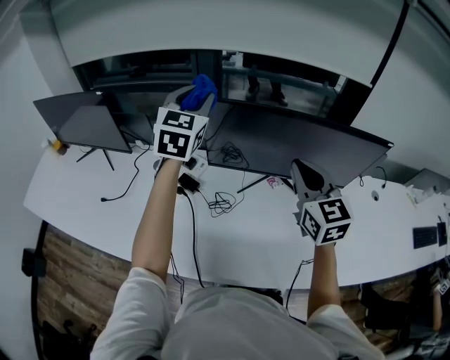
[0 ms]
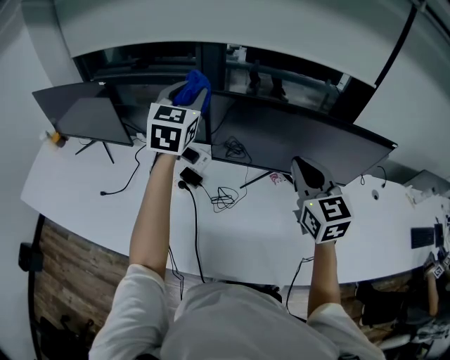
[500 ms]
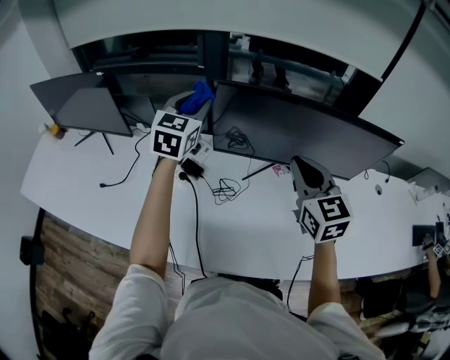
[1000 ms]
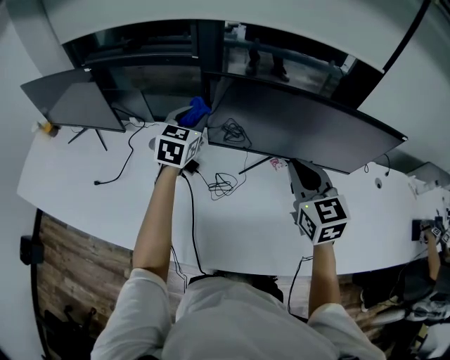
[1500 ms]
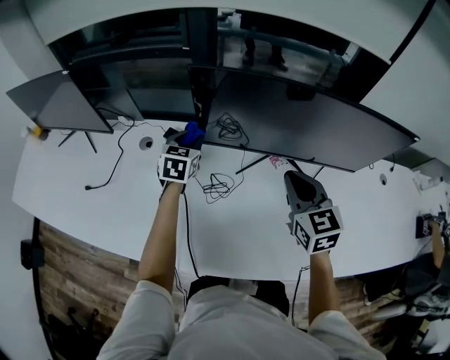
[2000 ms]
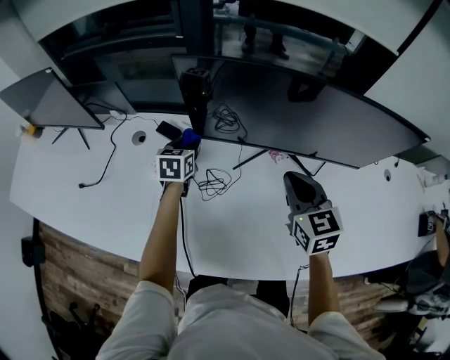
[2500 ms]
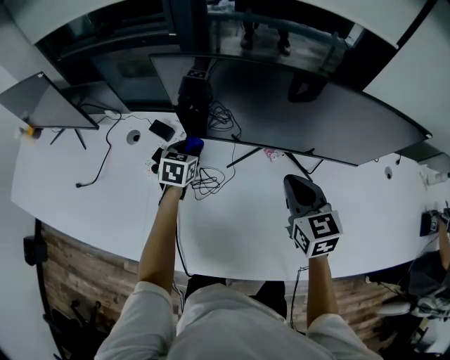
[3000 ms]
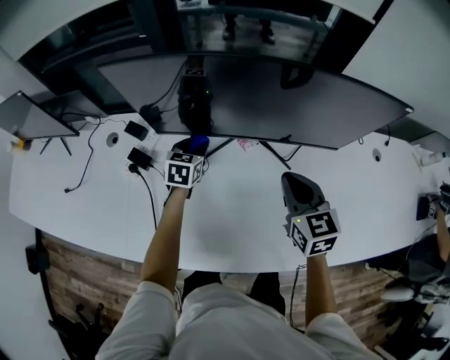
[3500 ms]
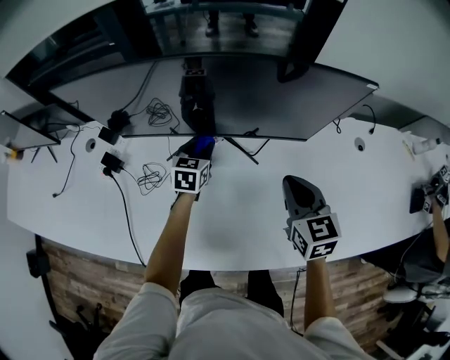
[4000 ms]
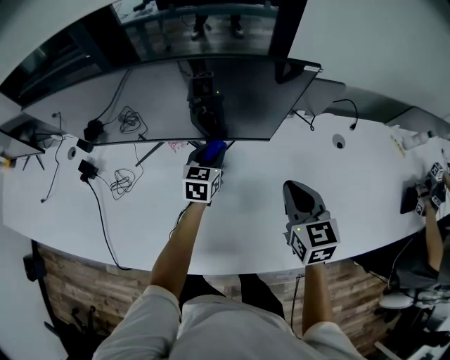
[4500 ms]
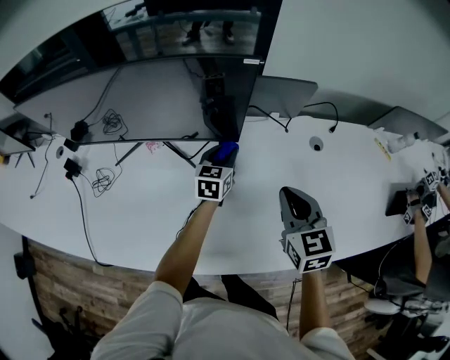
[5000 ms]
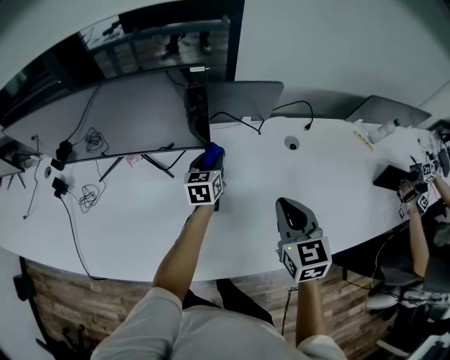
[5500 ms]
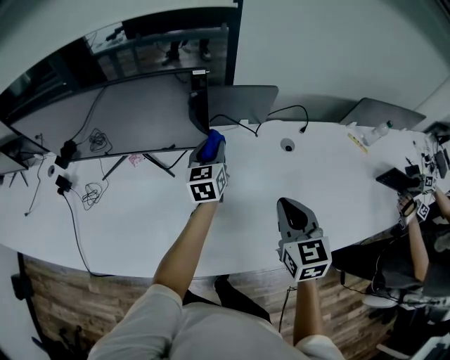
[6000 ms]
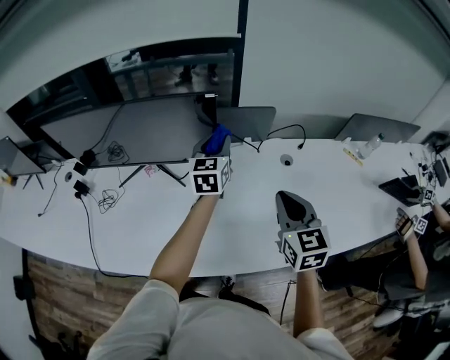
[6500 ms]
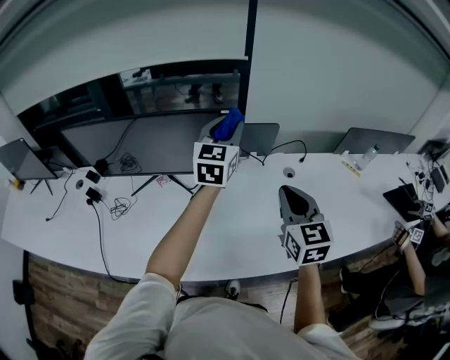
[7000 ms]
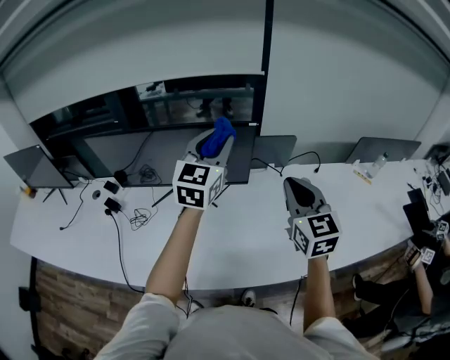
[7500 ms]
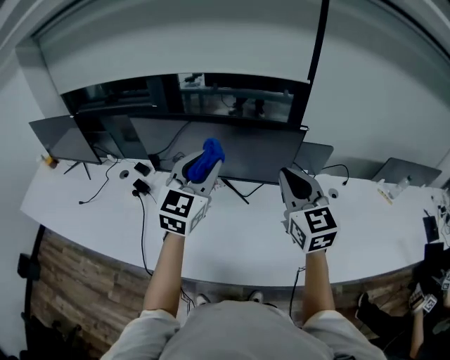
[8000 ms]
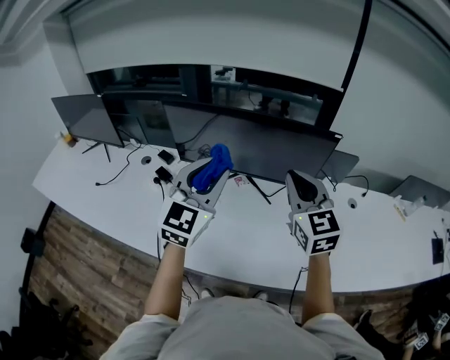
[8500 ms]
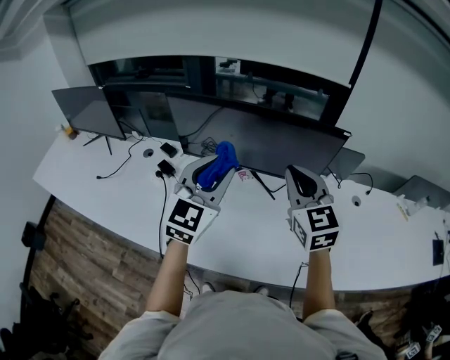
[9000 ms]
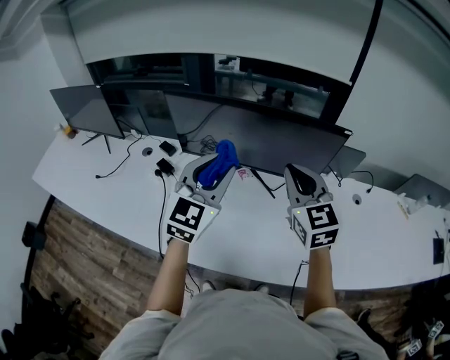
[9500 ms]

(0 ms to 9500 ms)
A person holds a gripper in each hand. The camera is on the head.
0 ms - 2000 ms: The left gripper shifts approximately 30 cm downward, and changes its angle by roughly 30 degrees. The right gripper is displaced downward by approximately 15 cm.
2000 ms - 4000 ms: Both grippers travel together to the right, about 30 cm.
4000 ms - 5500 ms: The two grippers go roughly 30 cm to the right.
5500 ms - 7500 ms: The right gripper moves upward and to the left, about 25 cm, and turns by approximately 20 degrees, while the left gripper travels upward by about 40 cm, and rotates approximately 40 degrees.
7500 ms - 9500 ms: The right gripper is displaced to the left by some 25 cm. Meanwhile the left gripper shifts about 25 cm to the left and backward.

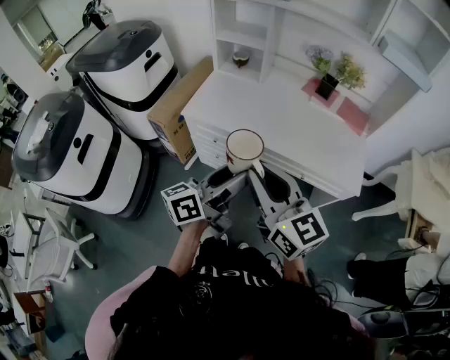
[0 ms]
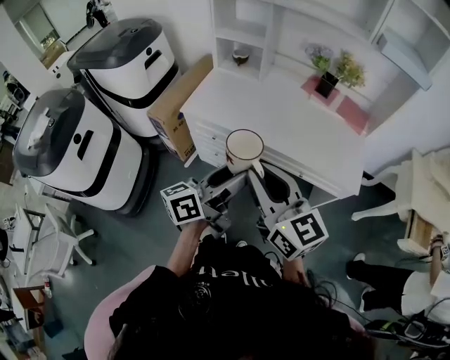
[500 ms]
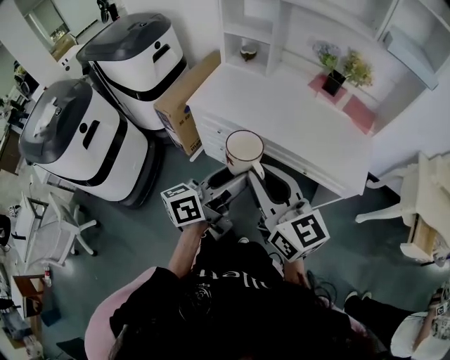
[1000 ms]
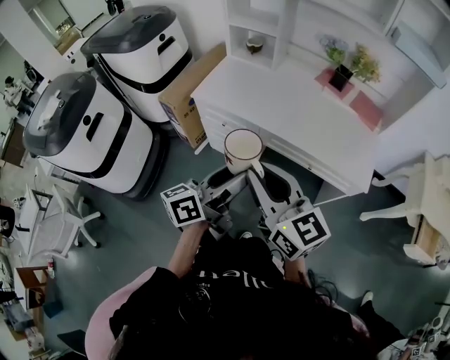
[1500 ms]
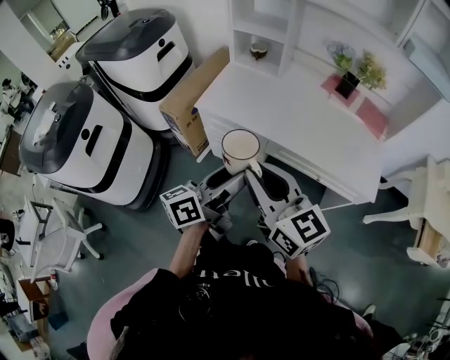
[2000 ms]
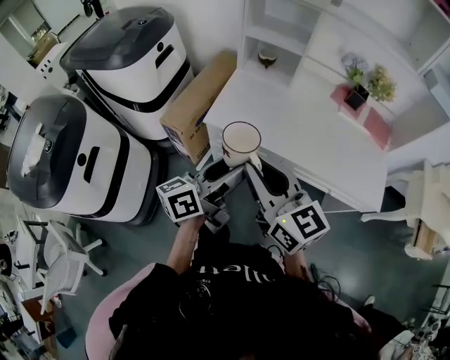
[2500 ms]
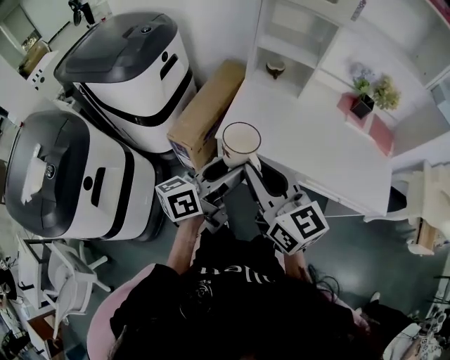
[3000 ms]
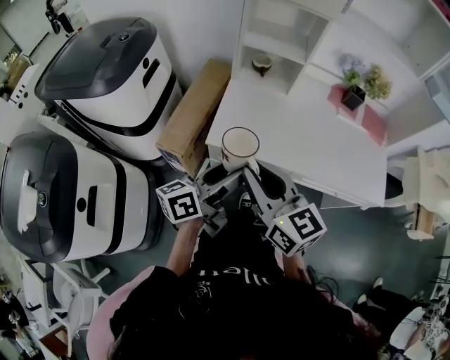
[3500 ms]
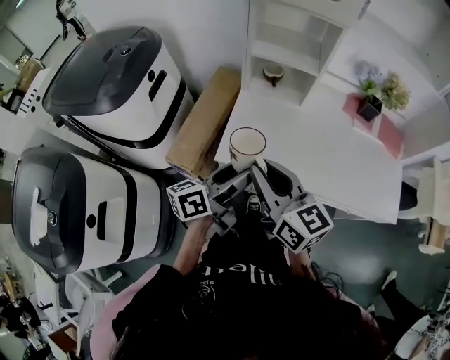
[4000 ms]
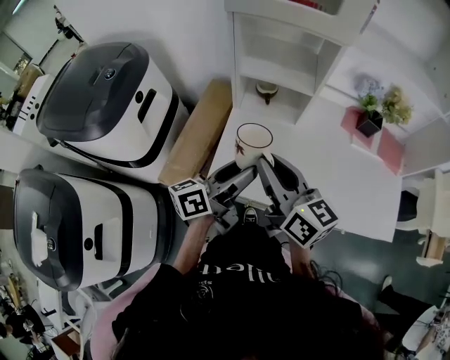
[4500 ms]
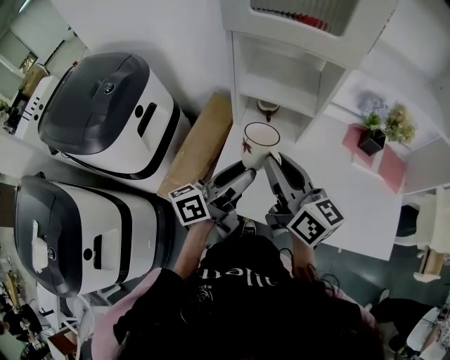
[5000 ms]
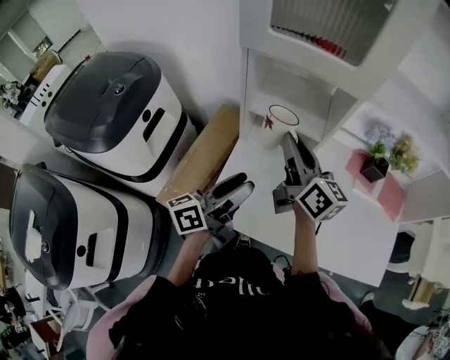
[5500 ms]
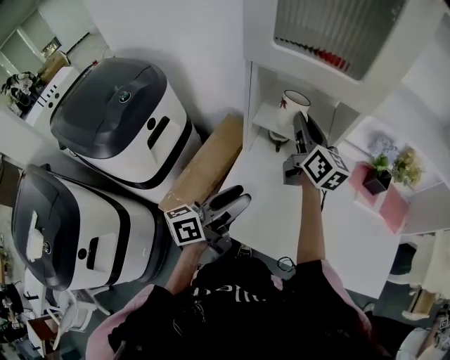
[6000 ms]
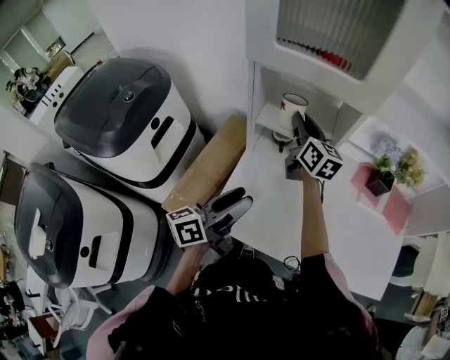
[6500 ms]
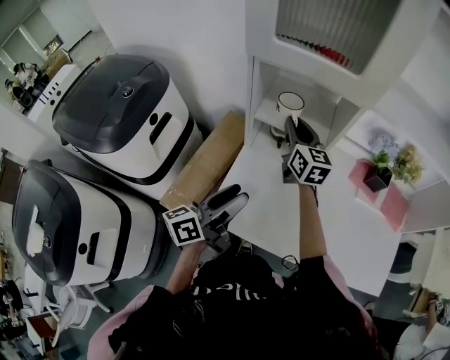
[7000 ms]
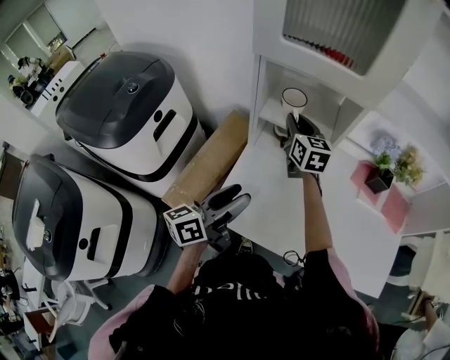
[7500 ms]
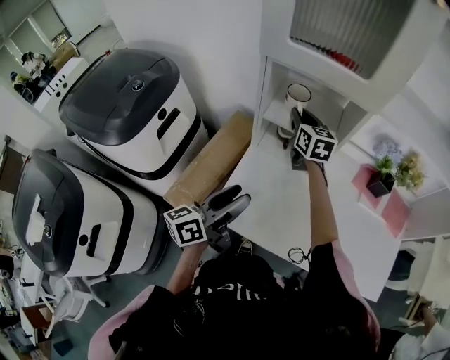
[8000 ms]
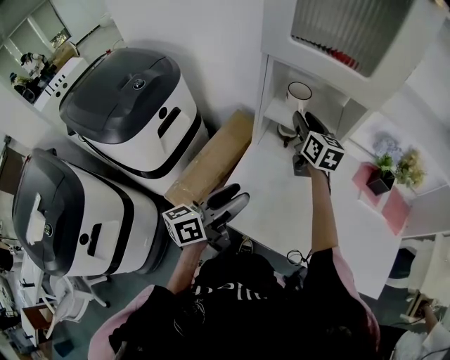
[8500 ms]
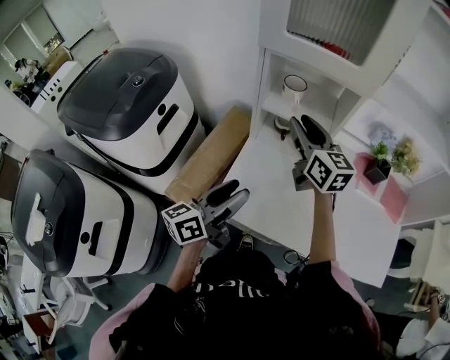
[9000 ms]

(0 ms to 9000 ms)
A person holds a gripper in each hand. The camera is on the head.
0 ms - 2000 ms: The left gripper shifts by approximately 5 cm, while the right gripper changes place by roughly 5 cm.
2000 ms - 4500 ms: The two grippers travel together, forward and to the left, roughly 40 cm. The right gripper swivels some 20 degrees.
4500 ms - 7000 ms: The right gripper heads forward, covering roughly 30 cm, and turns by about 20 degrees; the left gripper heads forward, covering approximately 5 cm.
7000 ms - 9000 ms: The right gripper travels backward and upward by some 10 cm; the left gripper moves backward, approximately 5 cm.

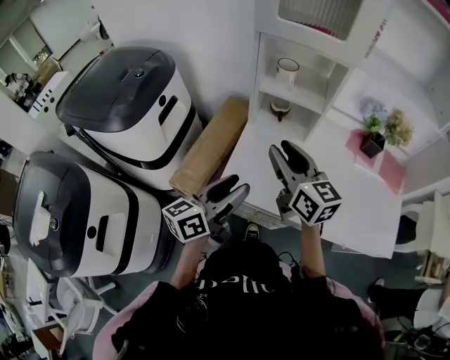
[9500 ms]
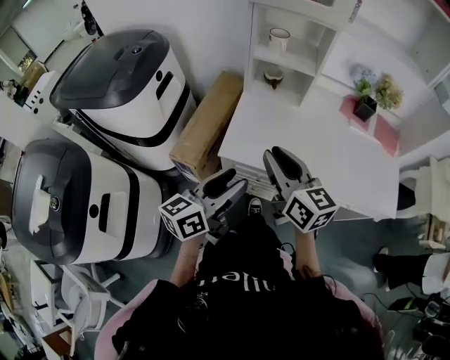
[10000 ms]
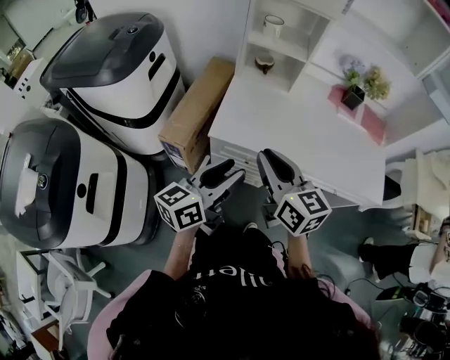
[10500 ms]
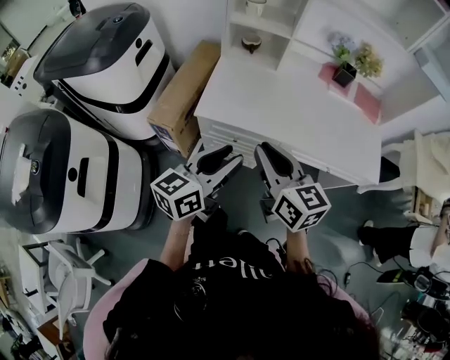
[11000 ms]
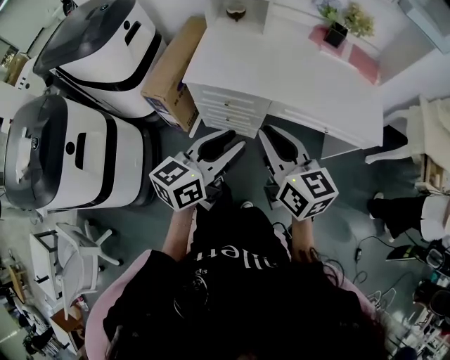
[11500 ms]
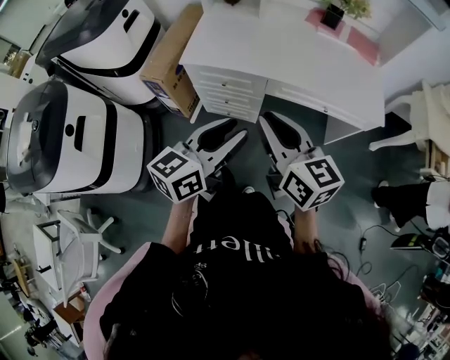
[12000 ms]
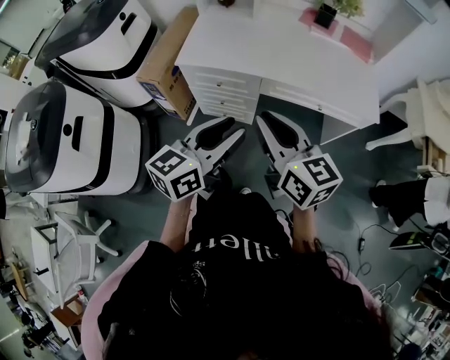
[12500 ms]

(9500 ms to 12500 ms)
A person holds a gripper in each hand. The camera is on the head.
9500 ms - 11000 ms: Both grippers move backward, some 25 cm. The right gripper closes.
11000 ms - 12500 ms: The grippers both shift backward and to the right by approximately 20 cm.

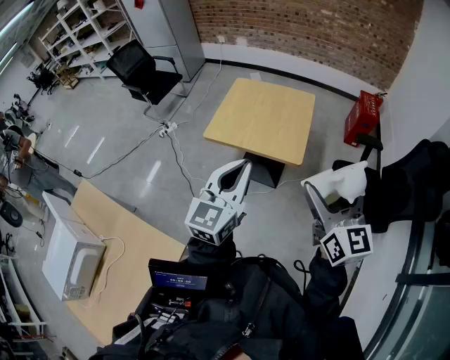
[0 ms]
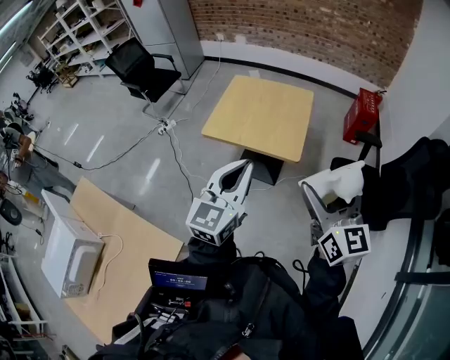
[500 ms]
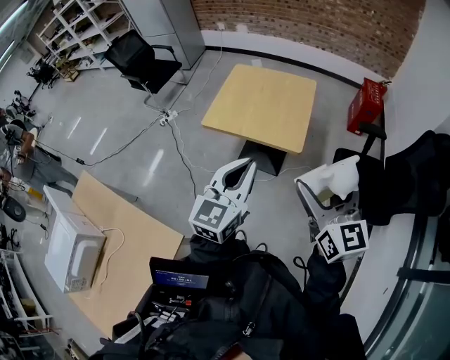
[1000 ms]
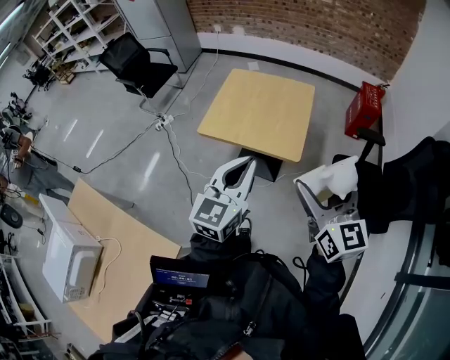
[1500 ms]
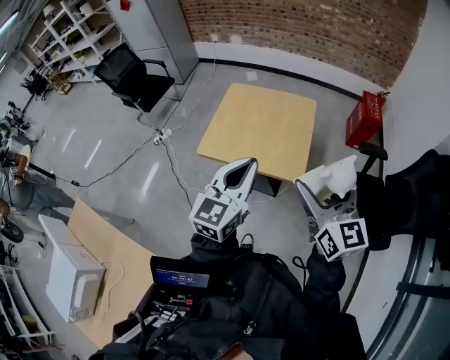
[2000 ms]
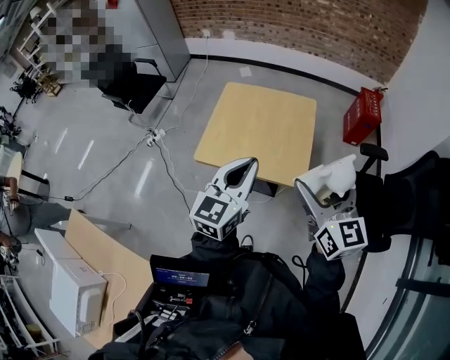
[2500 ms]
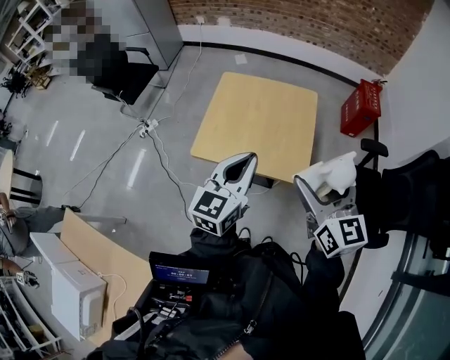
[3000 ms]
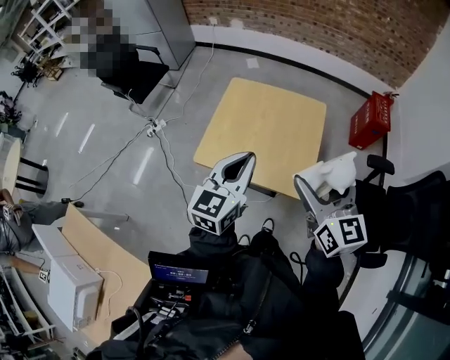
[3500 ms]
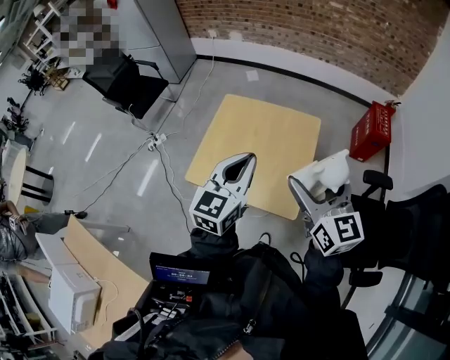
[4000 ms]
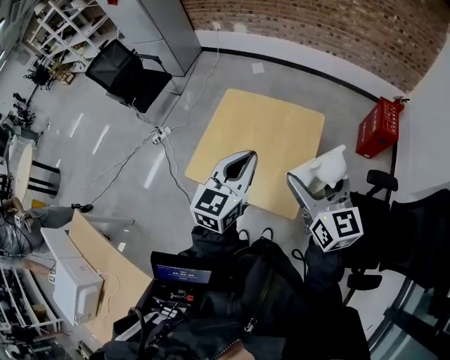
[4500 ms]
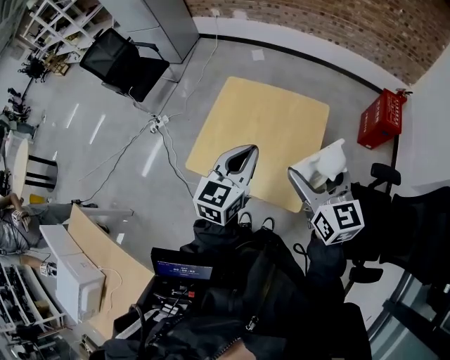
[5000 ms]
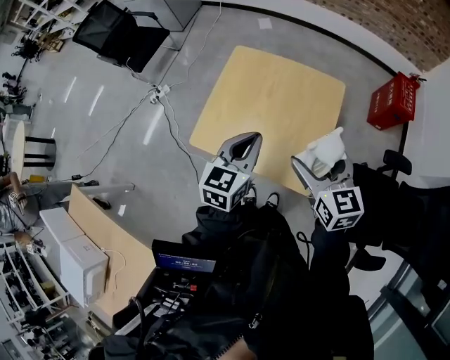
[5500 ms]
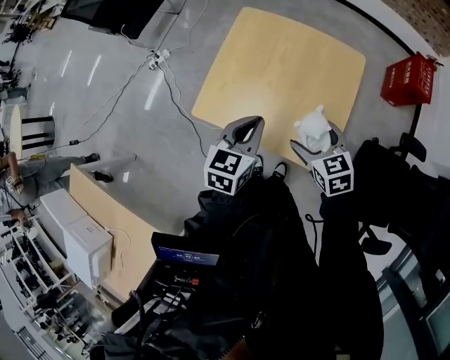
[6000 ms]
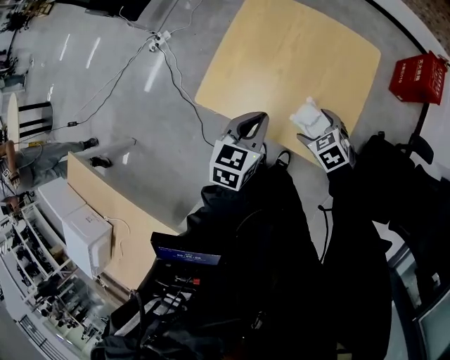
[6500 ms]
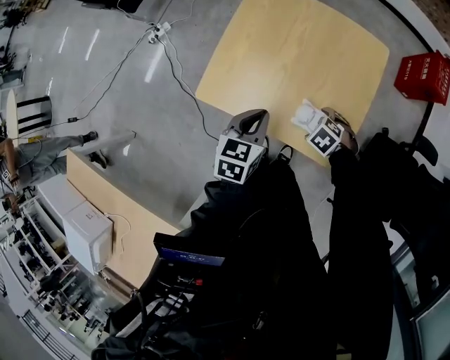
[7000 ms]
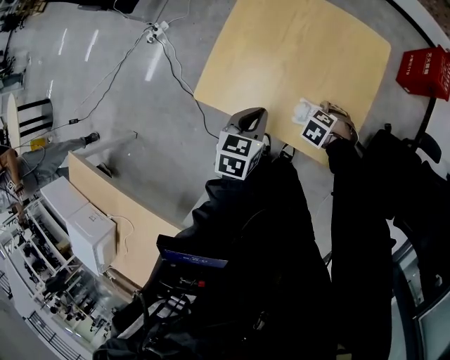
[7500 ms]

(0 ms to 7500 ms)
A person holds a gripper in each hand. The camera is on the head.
0 ms - 2000 ms: The two grippers go about 15 cm forward.
2000 ms - 4000 ms: The two grippers go approximately 20 cm forward.
4000 ms - 5500 ms: The right gripper moves downward and forward, some 15 cm; the left gripper moves downward, roughly 10 cm.
5500 ms - 7500 ms: The left gripper moves downward, roughly 20 cm, and swivels about 20 degrees, while the right gripper heads downward, covering approximately 40 cm, and tilts its fingers approximately 70 degrees downward.
